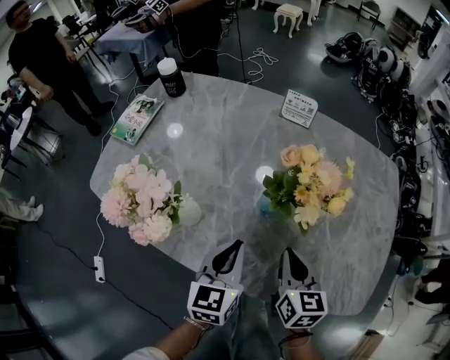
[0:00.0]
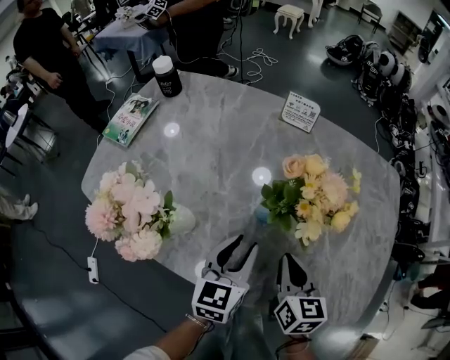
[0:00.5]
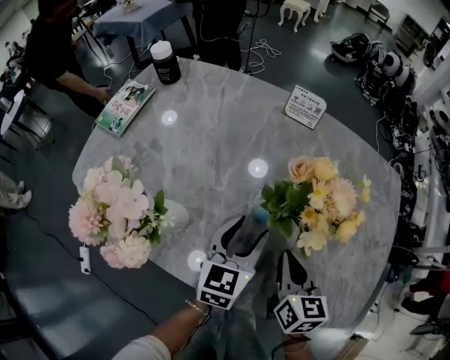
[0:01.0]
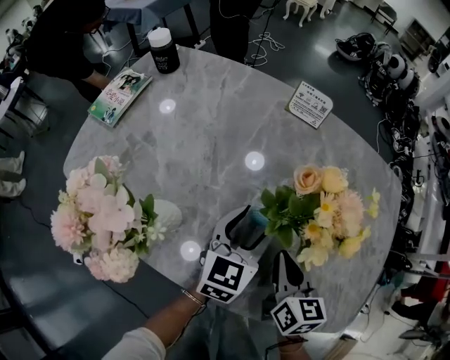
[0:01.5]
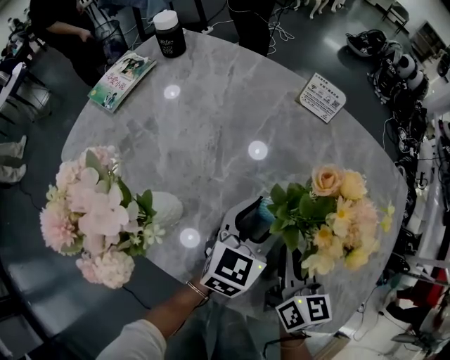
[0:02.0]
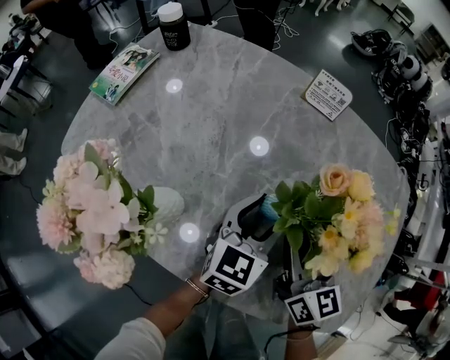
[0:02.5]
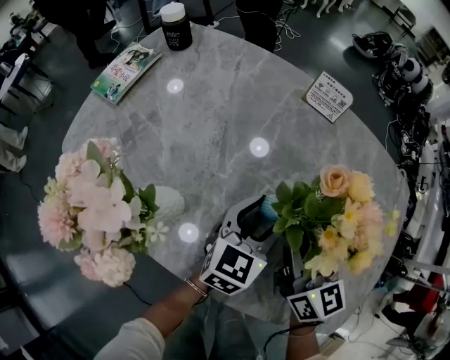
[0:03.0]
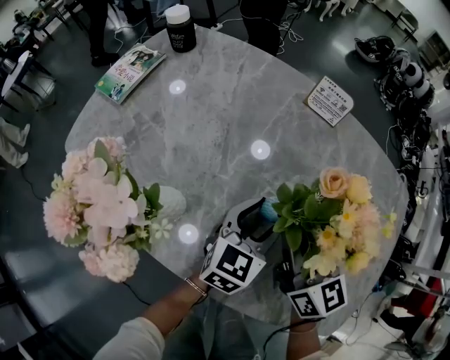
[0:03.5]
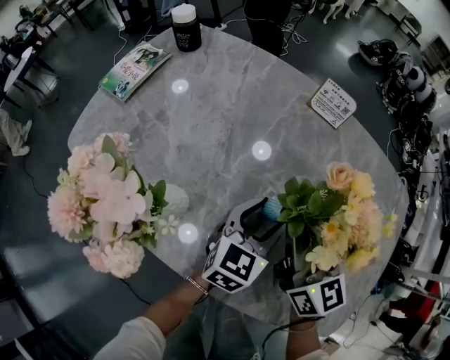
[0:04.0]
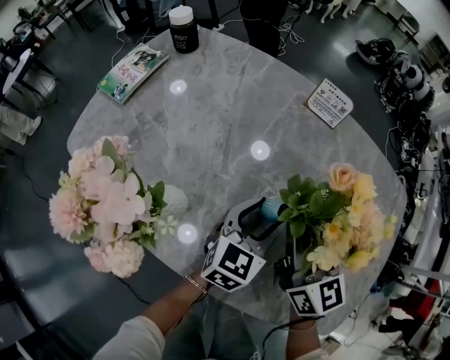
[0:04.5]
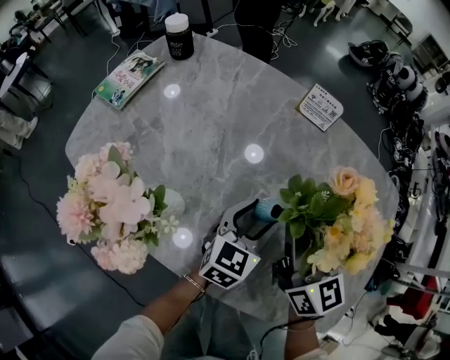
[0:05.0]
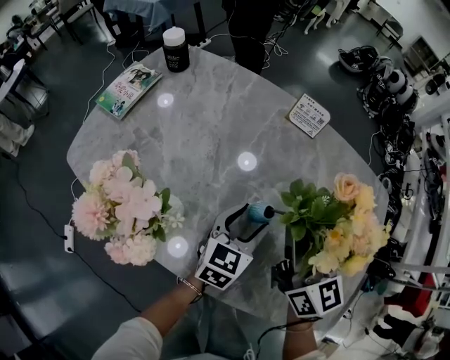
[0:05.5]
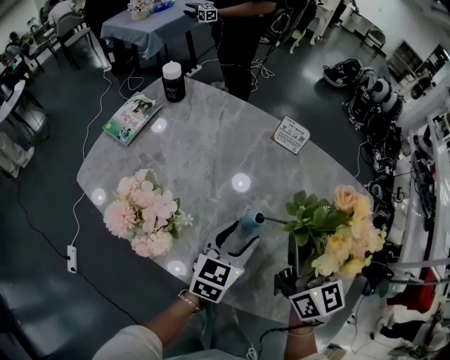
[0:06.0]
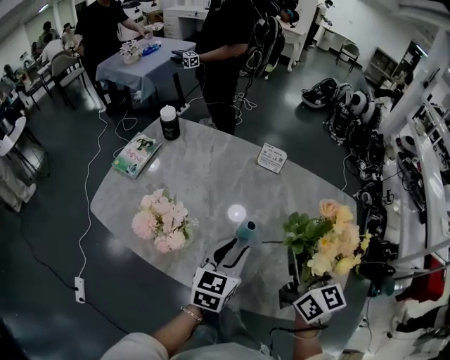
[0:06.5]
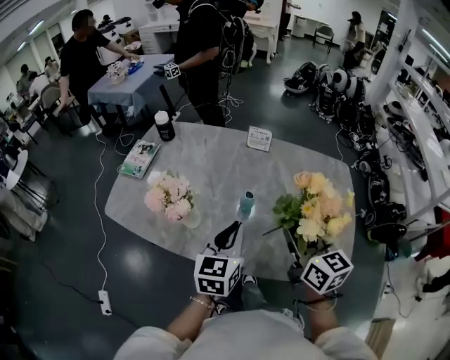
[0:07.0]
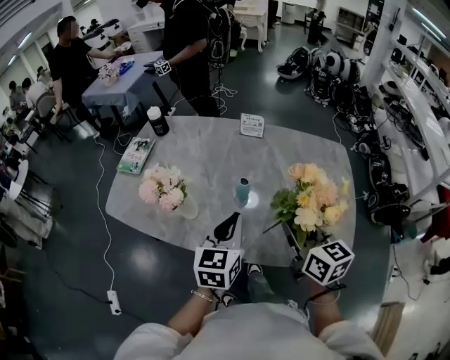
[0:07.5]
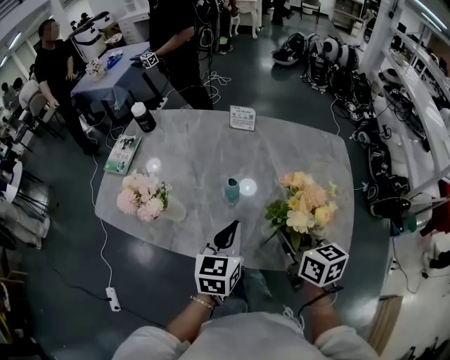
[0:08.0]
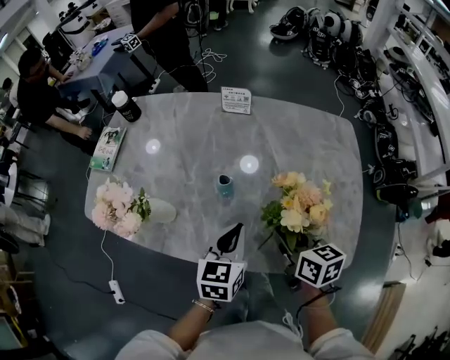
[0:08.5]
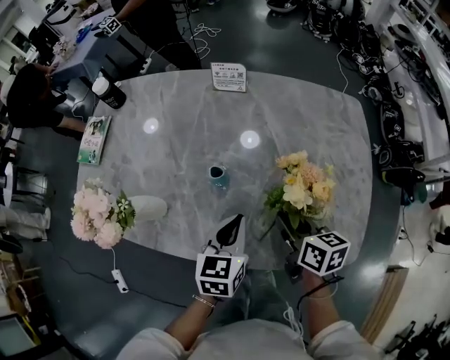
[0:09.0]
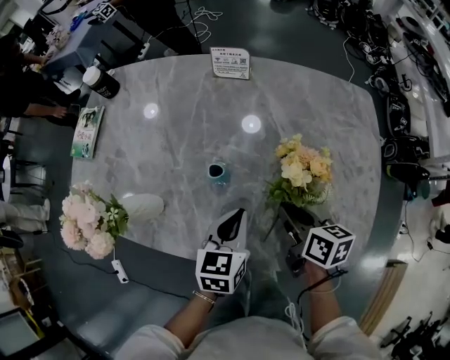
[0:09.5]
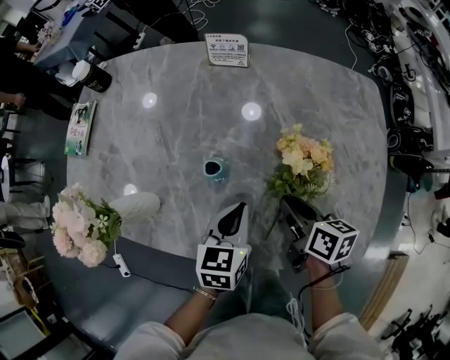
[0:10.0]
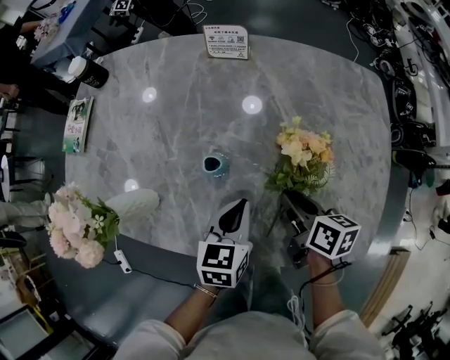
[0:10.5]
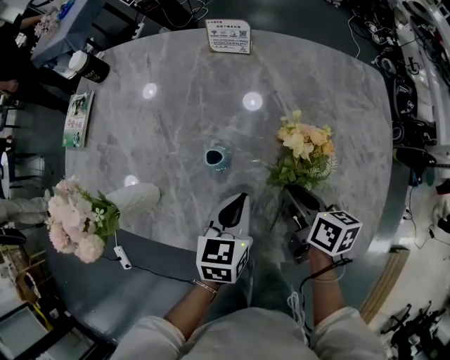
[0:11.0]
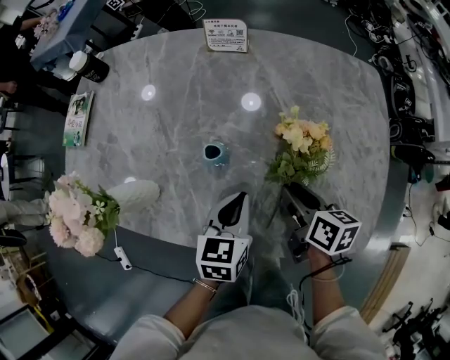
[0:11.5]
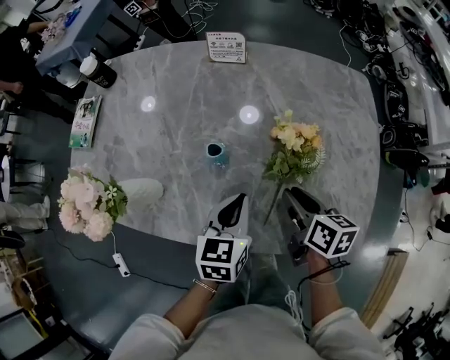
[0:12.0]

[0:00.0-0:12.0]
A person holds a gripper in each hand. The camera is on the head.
0:00.0 to 0:02.0: The right gripper travels forward by approximately 5 cm. Meanwhile the left gripper shifts some 15 cm forward and to the right, and opens up.
0:02.0 to 0:04.0: The right gripper travels upward and forward by roughly 10 cm, and rotates approximately 20 degrees.
0:04.0 to 0:06.0: The right gripper moves upward, some 10 cm; the left gripper is displaced upward by about 5 cm.
0:06.0 to 0:08.0: The right gripper is displaced backward and to the right by approximately 15 cm, and turns by about 30 degrees, while the left gripper heads backward and upward, covering some 15 cm, and closes.
0:08.0 to 0:10.0: Both grippers travel together downward and forward, approximately 20 cm. The right gripper turns by about 30 degrees.
0:10.0 to 0:12.0: The grippers stay close to where they were, moving slightly.

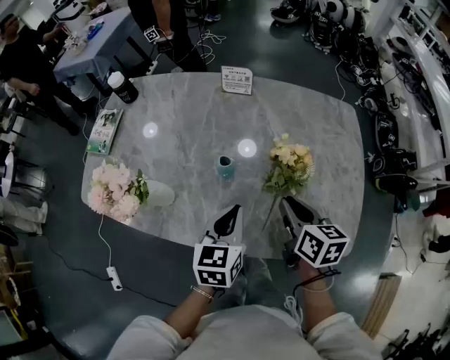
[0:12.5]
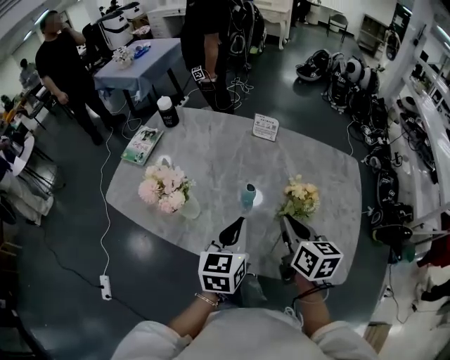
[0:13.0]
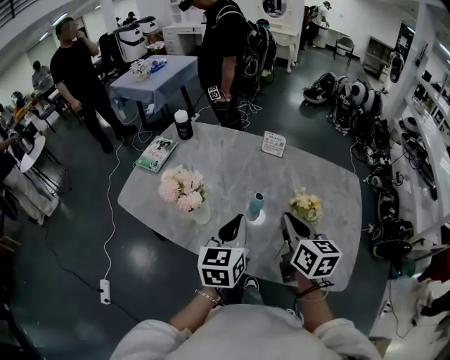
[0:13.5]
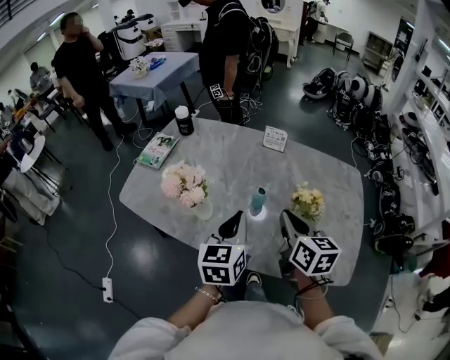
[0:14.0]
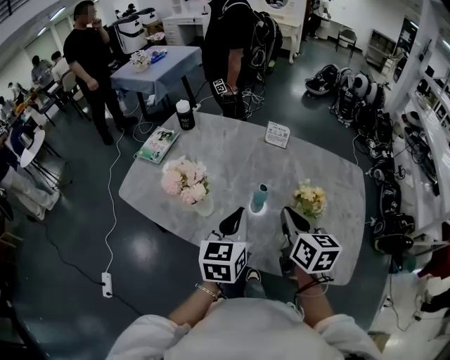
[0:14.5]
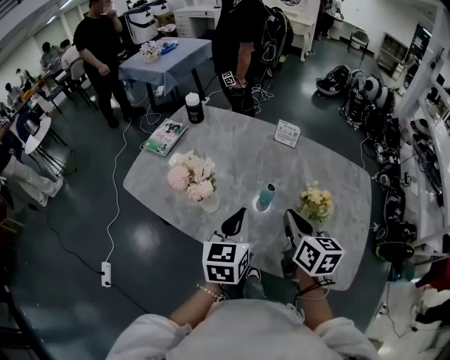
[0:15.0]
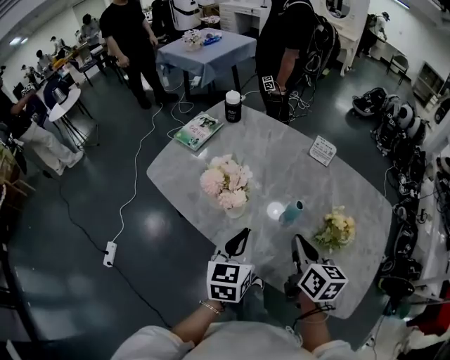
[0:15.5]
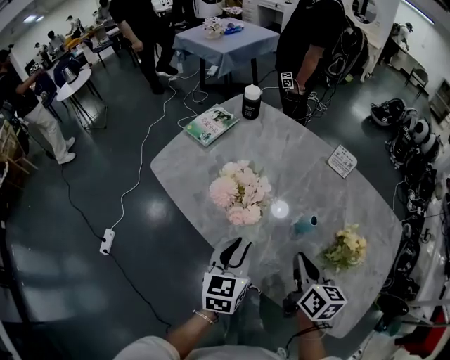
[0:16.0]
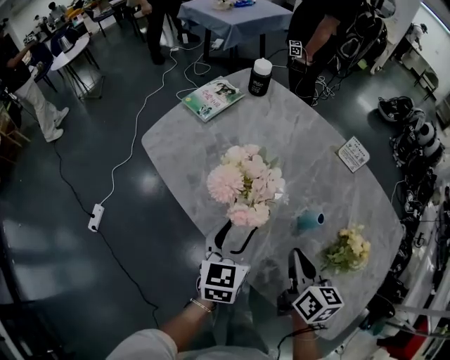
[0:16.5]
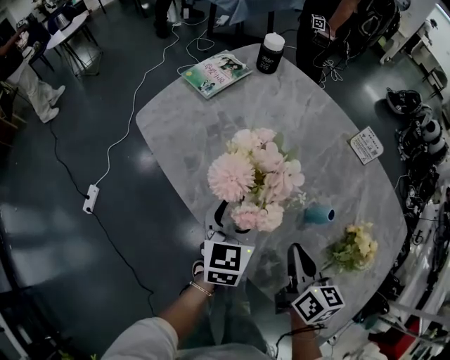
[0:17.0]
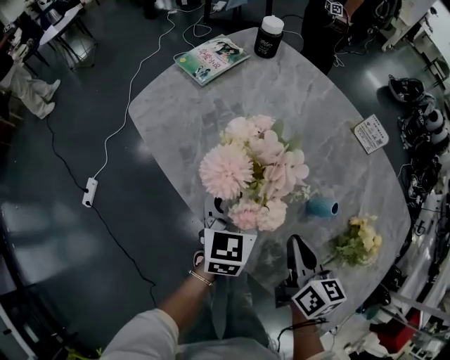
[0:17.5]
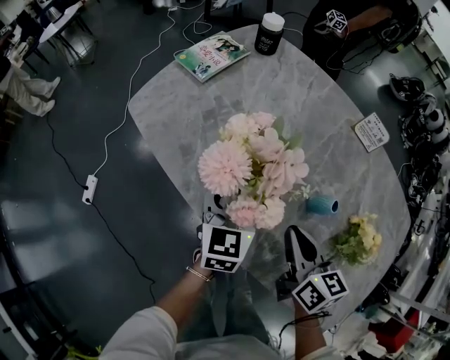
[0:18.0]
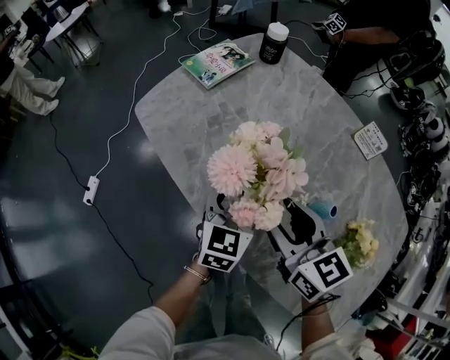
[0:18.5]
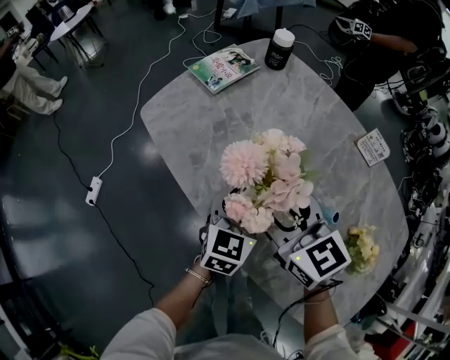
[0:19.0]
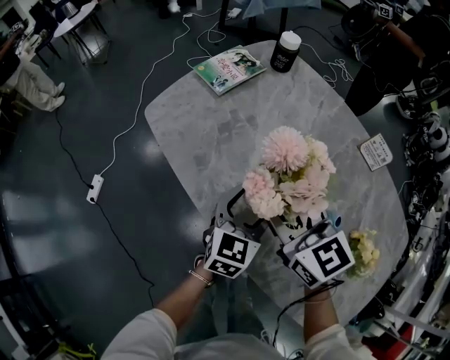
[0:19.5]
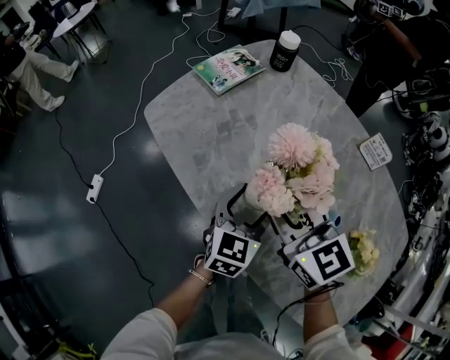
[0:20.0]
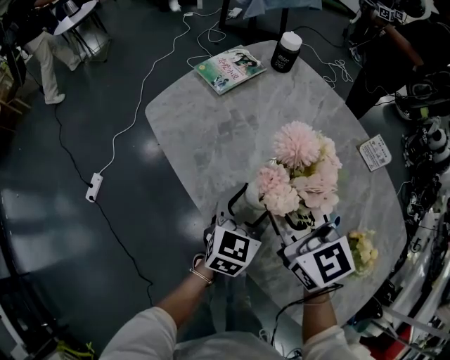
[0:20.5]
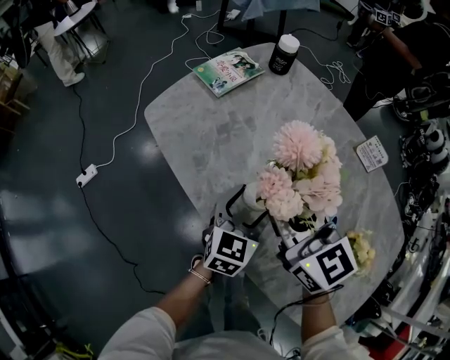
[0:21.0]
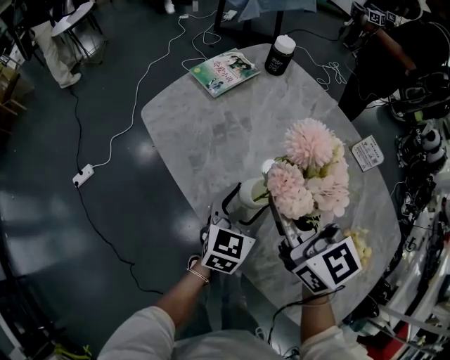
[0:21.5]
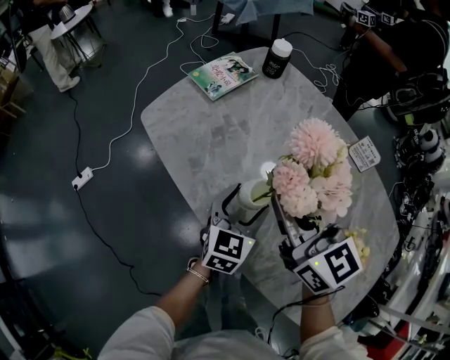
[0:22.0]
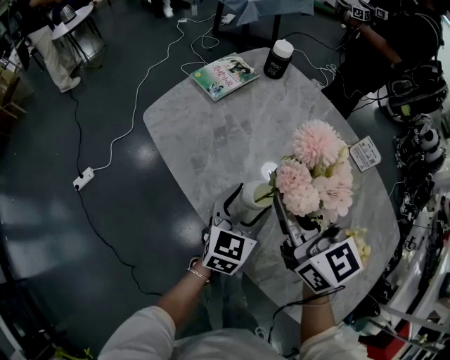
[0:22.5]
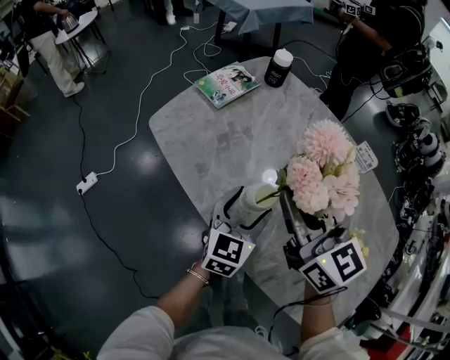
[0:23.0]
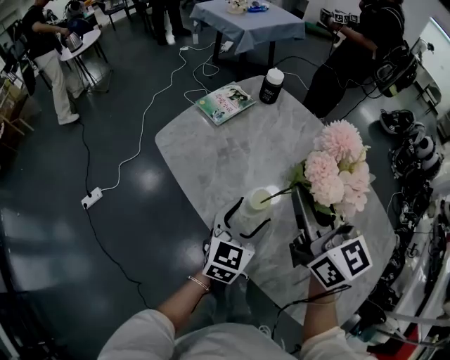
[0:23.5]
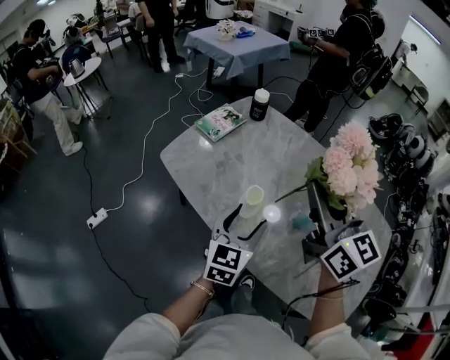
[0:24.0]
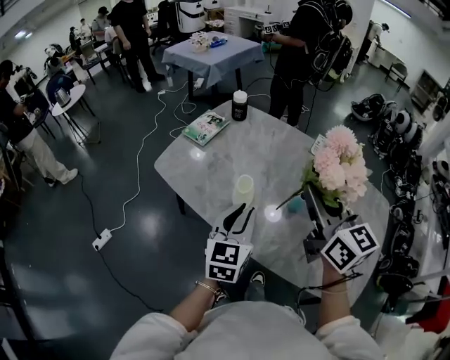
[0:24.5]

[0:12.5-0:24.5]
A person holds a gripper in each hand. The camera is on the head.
0:12.5 to 0:14.5: Both grippers move upward and to the left, approximately 15 cm.
0:14.5 to 0:16.5: The grippers both shift downward and to the left by roughly 15 cm. The left gripper swivels roughly 20 degrees, and opens up.
0:16.5 to 0:18.5: The left gripper goes approximately 5 cm forward. Meanwhile the right gripper shifts roughly 15 cm to the left and forward, rotates some 30 degrees, and opens.
0:18.5 to 0:20.5: The right gripper shifts by roughly 10 cm.
0:20.5 to 0:22.5: The grippers make only small movements.
0:22.5 to 0:24.5: The left gripper heads upward and backward, covering approximately 20 cm, and closes. The right gripper moves upward, backward and to the right, about 20 cm, and swivels some 20 degrees.

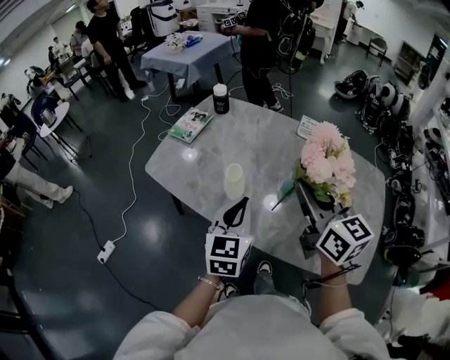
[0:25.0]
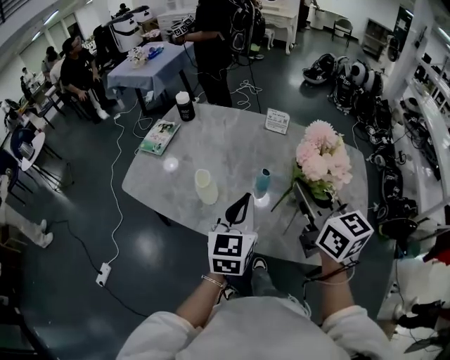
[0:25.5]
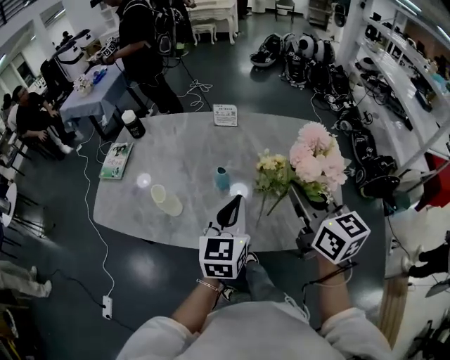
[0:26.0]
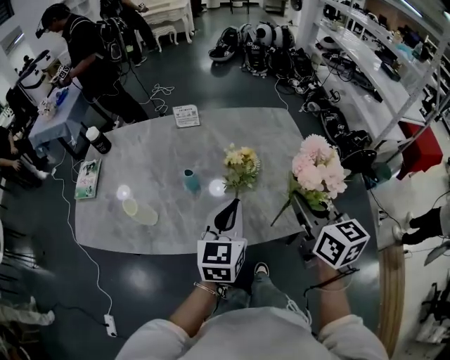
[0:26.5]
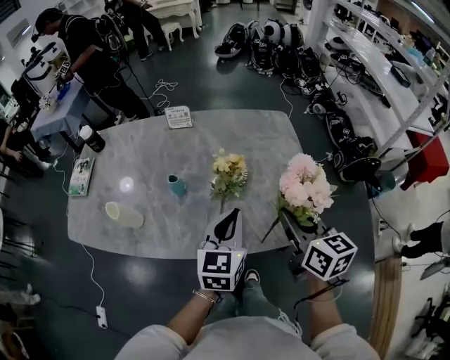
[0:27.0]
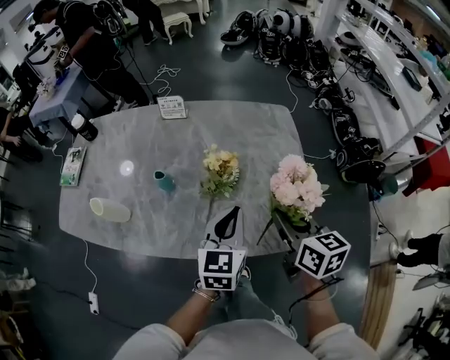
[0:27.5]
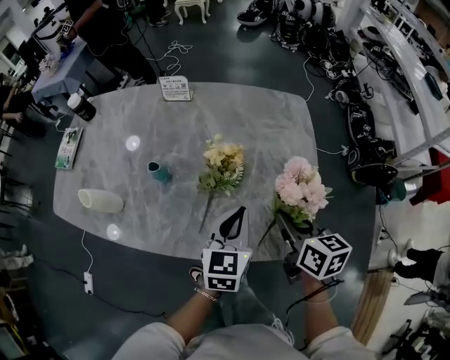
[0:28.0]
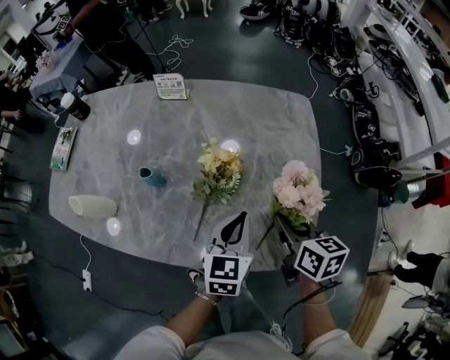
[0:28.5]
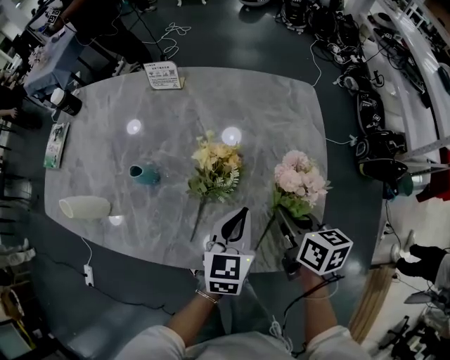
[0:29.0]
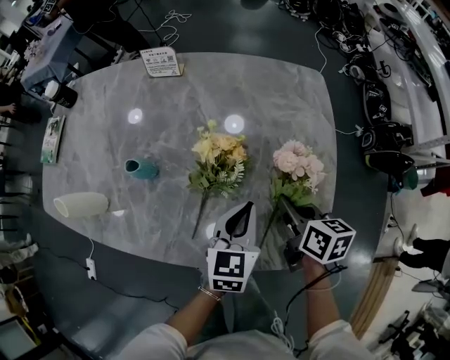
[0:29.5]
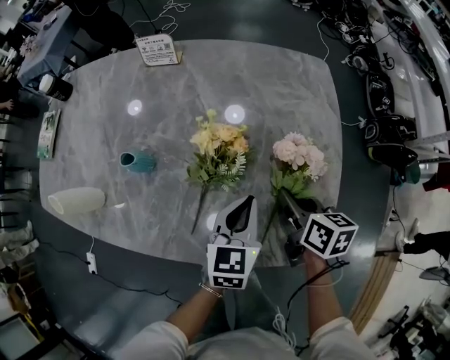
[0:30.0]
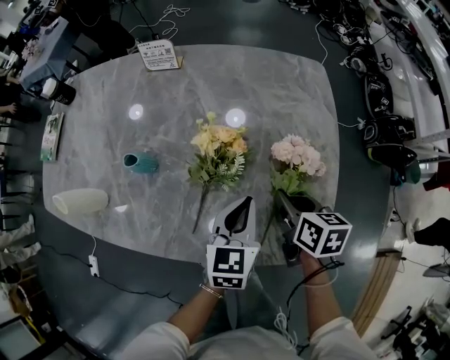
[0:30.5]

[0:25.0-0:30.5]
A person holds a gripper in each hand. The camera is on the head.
0:25.0 to 0:27.0: The left gripper shifts by approximately 30 cm, and turns by about 30 degrees, while the right gripper ends up about 35 cm from where it was, and rotates roughly 40 degrees.
0:27.0 to 0:28.5: The left gripper is displaced downward, to the right and forward by approximately 15 cm. Meanwhile the right gripper travels downward and forward by about 15 cm.
0:28.5 to 0:30.5: The left gripper is displaced downward by about 5 cm. Meanwhile the right gripper heads downward, covering roughly 10 cm.
